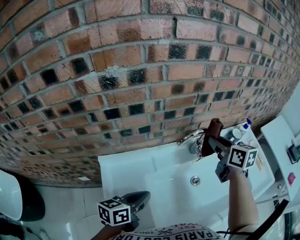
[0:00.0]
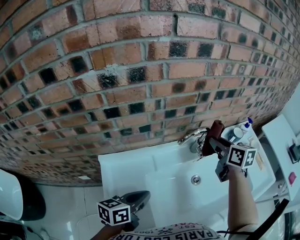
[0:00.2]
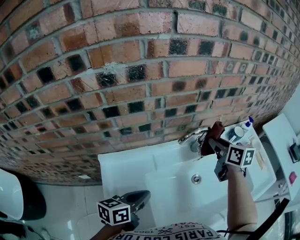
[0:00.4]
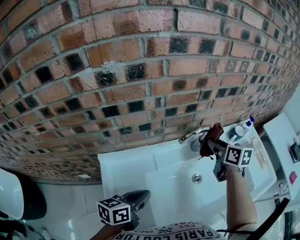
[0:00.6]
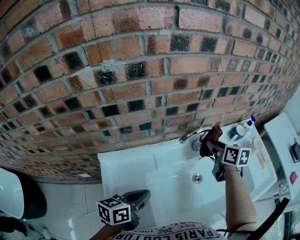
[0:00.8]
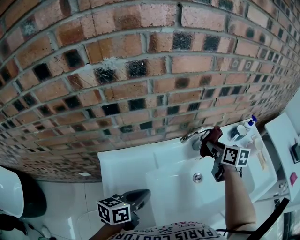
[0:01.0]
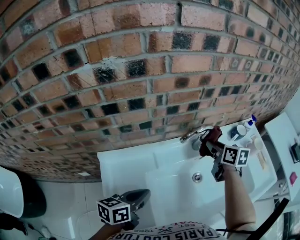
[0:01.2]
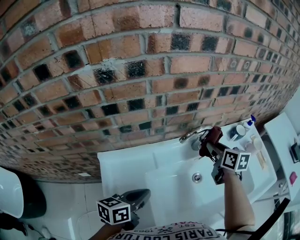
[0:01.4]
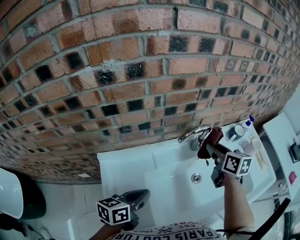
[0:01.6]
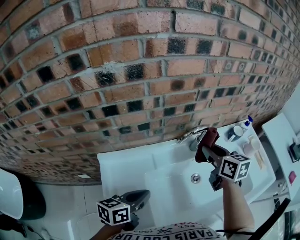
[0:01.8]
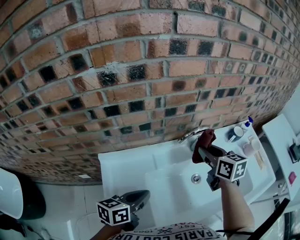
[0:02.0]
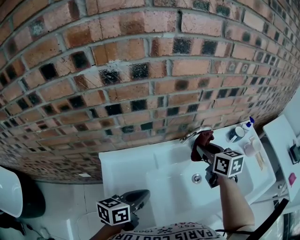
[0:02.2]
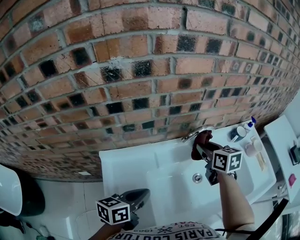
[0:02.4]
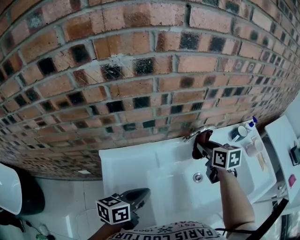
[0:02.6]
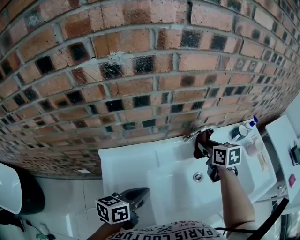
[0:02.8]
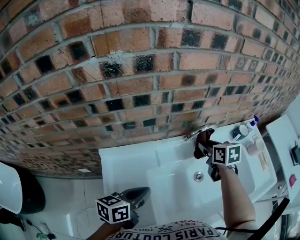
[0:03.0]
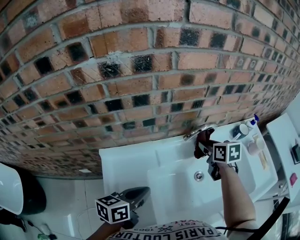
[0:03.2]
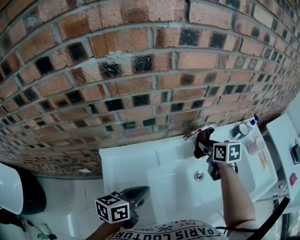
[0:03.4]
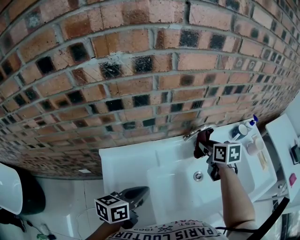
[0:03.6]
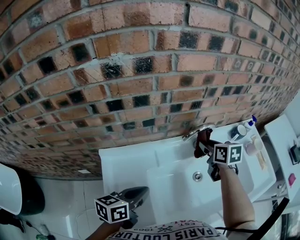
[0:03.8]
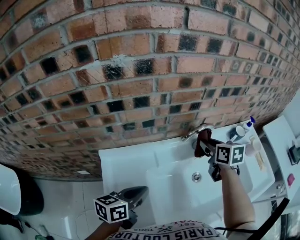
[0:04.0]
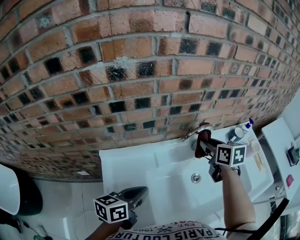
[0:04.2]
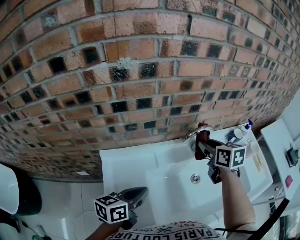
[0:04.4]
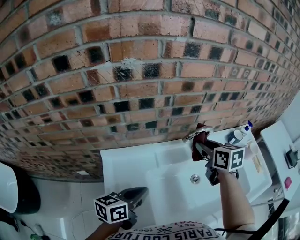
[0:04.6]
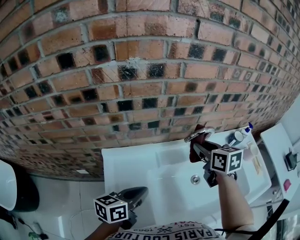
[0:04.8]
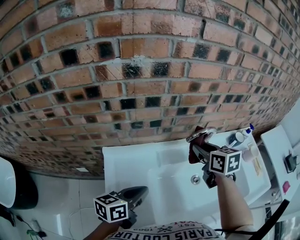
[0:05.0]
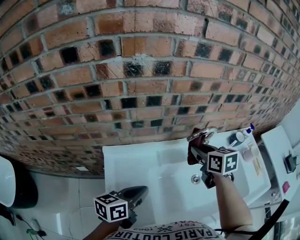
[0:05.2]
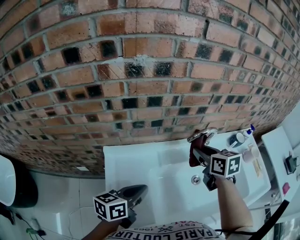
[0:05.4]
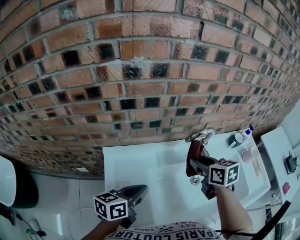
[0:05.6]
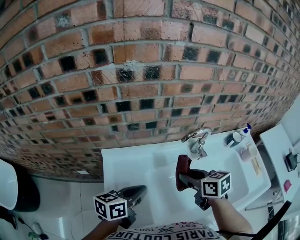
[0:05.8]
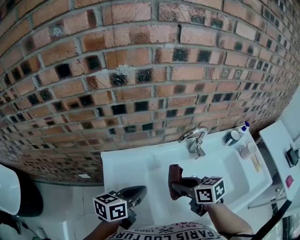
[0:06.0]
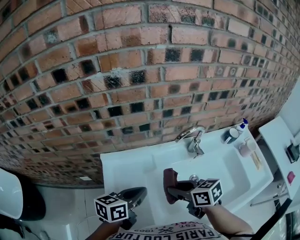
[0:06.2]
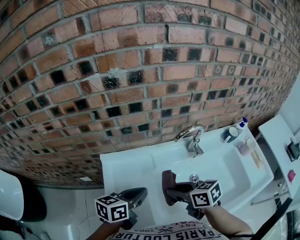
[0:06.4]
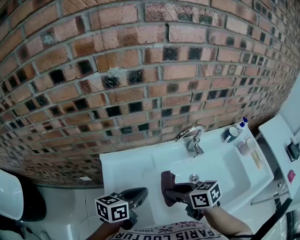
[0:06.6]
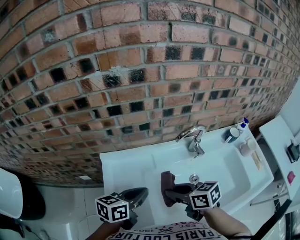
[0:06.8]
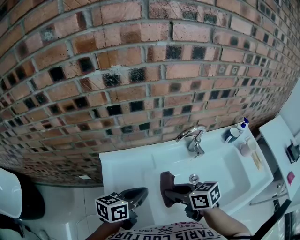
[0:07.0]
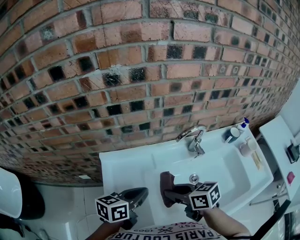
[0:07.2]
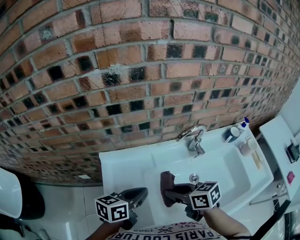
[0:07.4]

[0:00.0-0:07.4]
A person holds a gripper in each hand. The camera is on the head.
0:00.0 to 0:01.4: The right gripper moves downward, approximately 10 cm.
0:01.4 to 0:03.0: The right gripper ends up some 5 cm from where it was.
0:03.0 to 0:04.4: The right gripper travels upward by some 5 cm.
0:04.4 to 0:06.0: The right gripper moves backward and to the left, roughly 20 cm, and turns by some 30 degrees.
0:06.0 to 0:07.4: There are only small adjustments of the grippers.

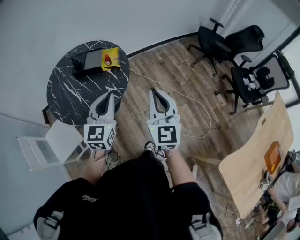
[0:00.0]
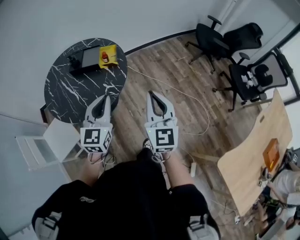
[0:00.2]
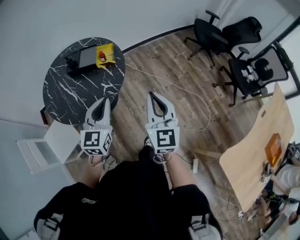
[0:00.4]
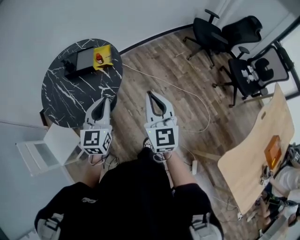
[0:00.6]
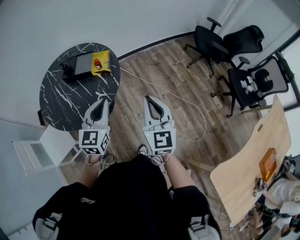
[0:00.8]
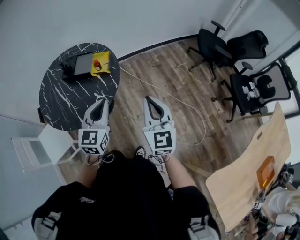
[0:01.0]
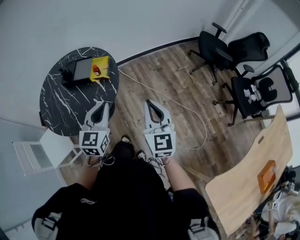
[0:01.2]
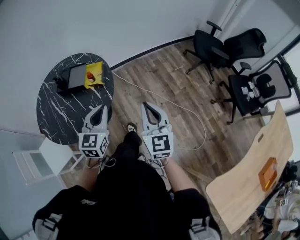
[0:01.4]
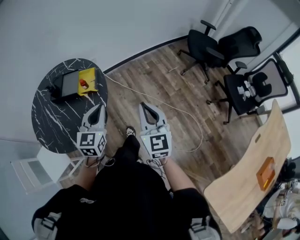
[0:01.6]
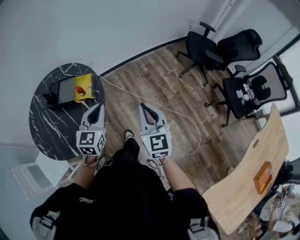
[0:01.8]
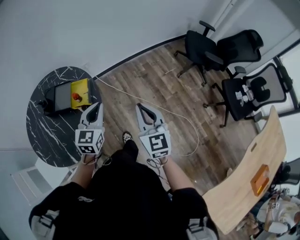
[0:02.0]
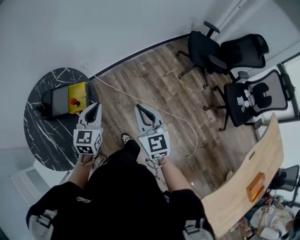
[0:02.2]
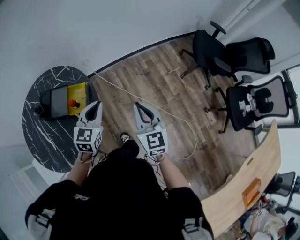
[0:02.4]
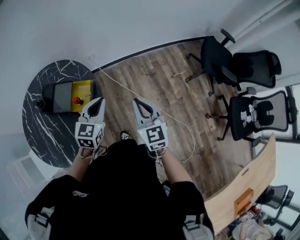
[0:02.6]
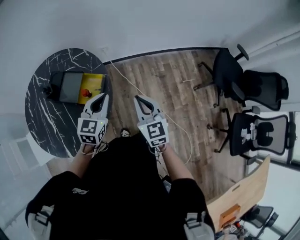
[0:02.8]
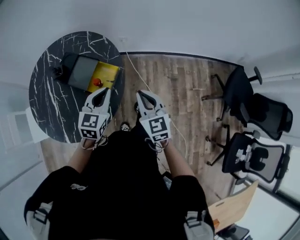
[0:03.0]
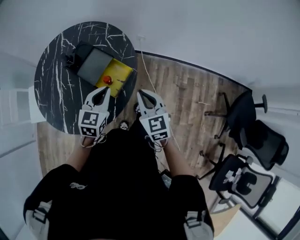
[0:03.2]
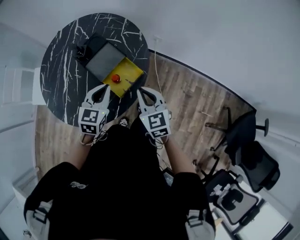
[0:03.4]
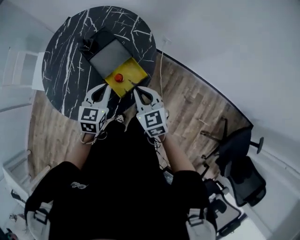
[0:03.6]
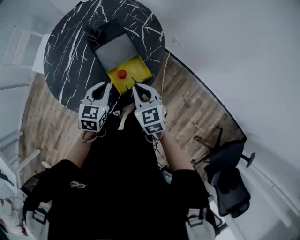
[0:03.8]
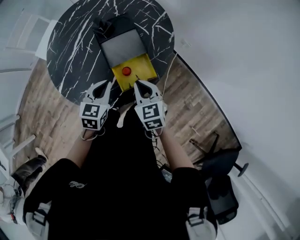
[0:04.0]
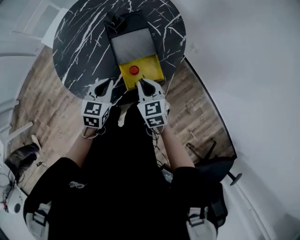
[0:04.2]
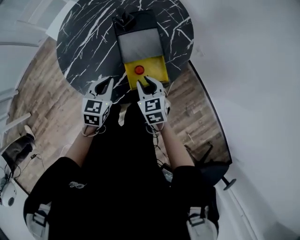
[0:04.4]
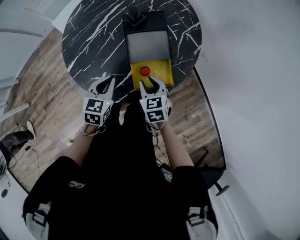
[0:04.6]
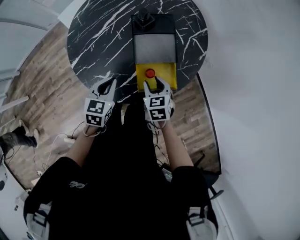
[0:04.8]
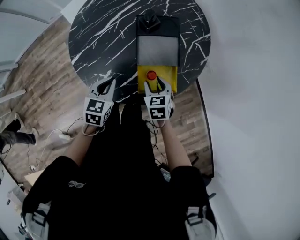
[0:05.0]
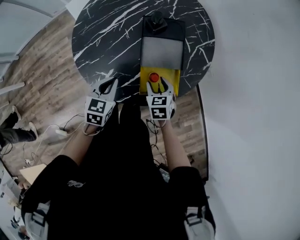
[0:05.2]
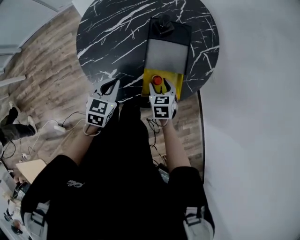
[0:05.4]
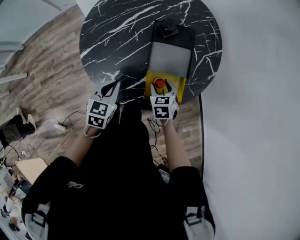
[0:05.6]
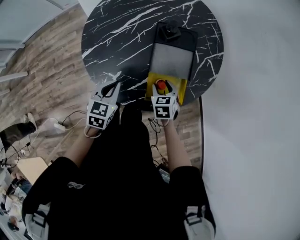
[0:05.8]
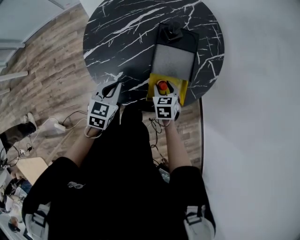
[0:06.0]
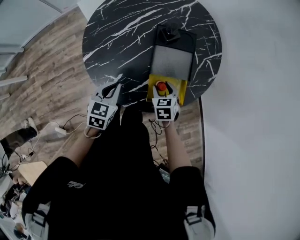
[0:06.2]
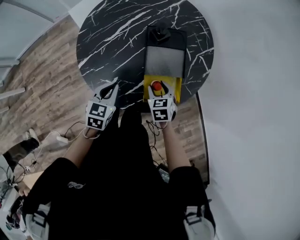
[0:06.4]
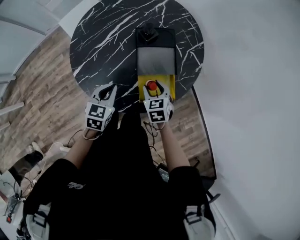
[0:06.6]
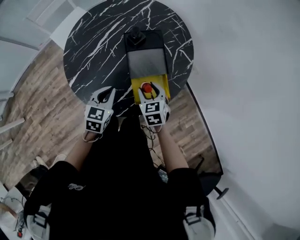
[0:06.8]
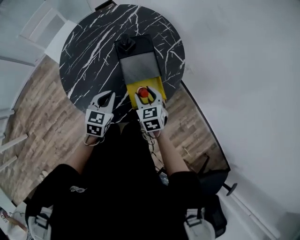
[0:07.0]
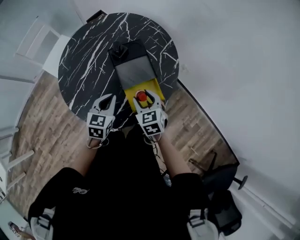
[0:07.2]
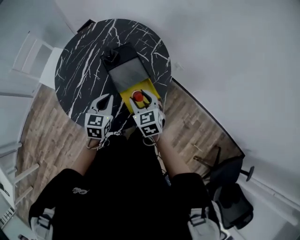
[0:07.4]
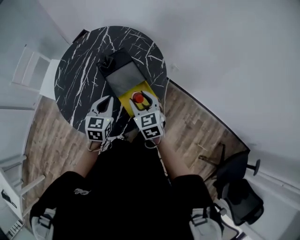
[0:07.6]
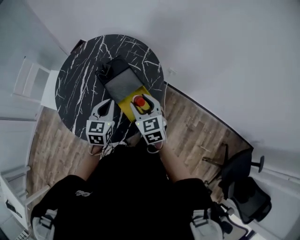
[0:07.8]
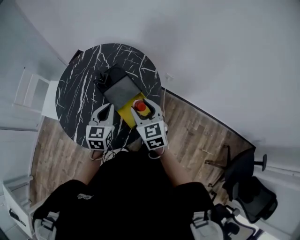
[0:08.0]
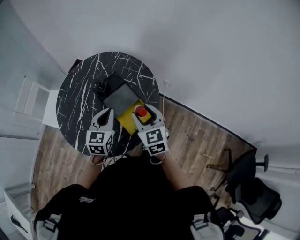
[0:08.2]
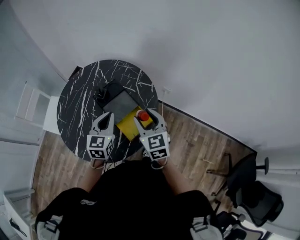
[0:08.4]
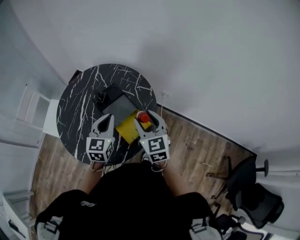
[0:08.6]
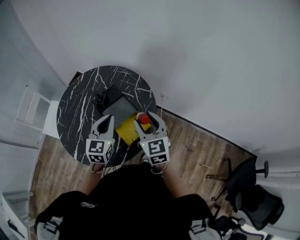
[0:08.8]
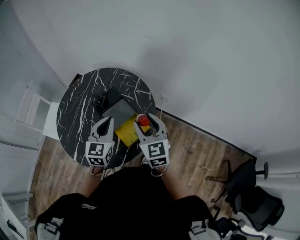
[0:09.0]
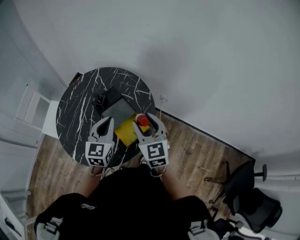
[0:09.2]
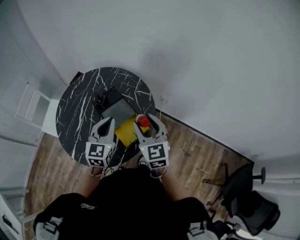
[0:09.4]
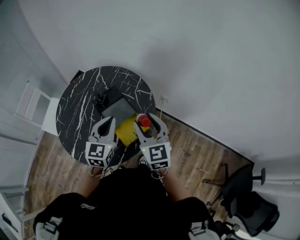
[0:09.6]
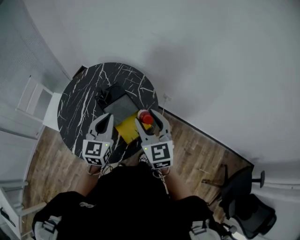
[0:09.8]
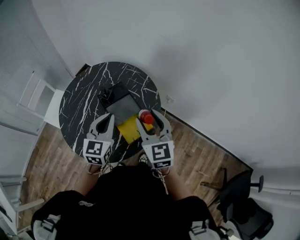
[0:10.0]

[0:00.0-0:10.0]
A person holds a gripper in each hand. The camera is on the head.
0:00.0 to 0:01.4: Both grippers move forward, to the right and downward, approximately 15 cm.
0:01.4 to 0:02.8: The two grippers go about 35 cm forward. The right gripper turns by approximately 30 degrees.
0:02.8 to 0:04.2: The right gripper moves roughly 30 cm, and turns by some 70 degrees. The left gripper moves roughly 25 cm, and swivels some 60 degrees.
0:04.2 to 0:05.8: The left gripper shifts some 10 cm to the left. Meanwhile the right gripper heads downward and forward, covering roughly 10 cm, turns by about 20 degrees, and opens its fingers.
0:05.8 to 0:07.2: The right gripper goes roughly 15 cm upward, and changes its angle by about 20 degrees. Meanwhile the left gripper goes some 10 cm to the right and upward, and swivels about 20 degrees.
0:07.2 to 0:08.6: The grippers both shift upward and to the right by approximately 15 cm. The left gripper rotates some 20 degrees; the right gripper swivels approximately 30 degrees.
0:08.6 to 0:10.0: The right gripper travels upward by some 5 cm.

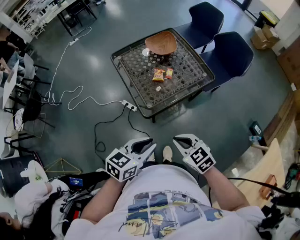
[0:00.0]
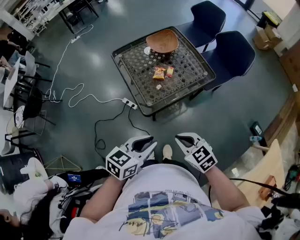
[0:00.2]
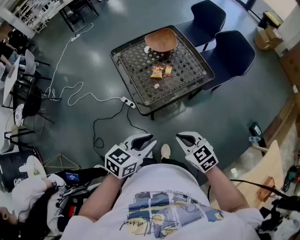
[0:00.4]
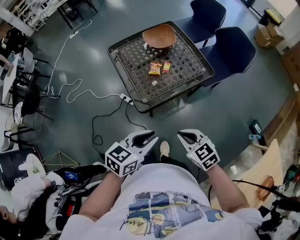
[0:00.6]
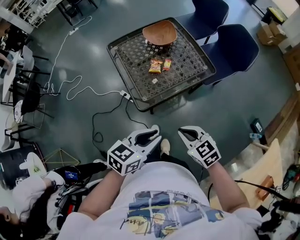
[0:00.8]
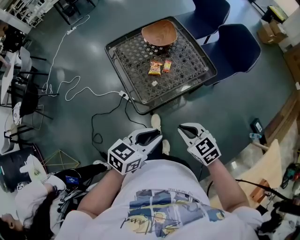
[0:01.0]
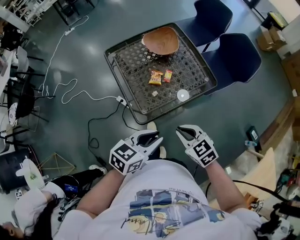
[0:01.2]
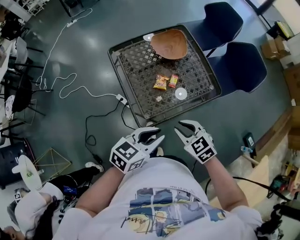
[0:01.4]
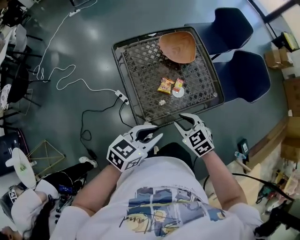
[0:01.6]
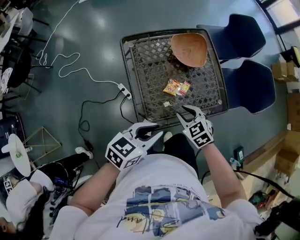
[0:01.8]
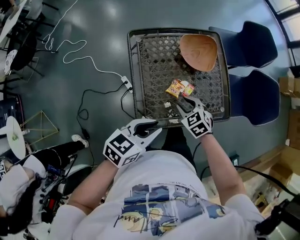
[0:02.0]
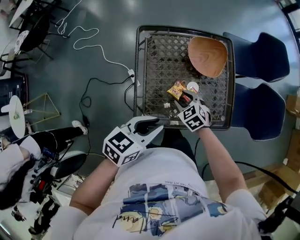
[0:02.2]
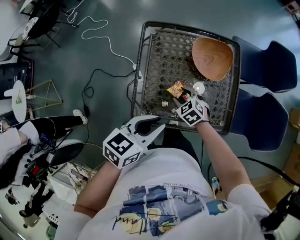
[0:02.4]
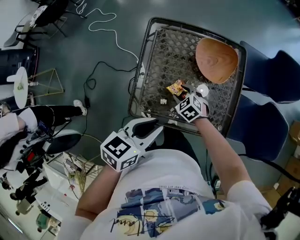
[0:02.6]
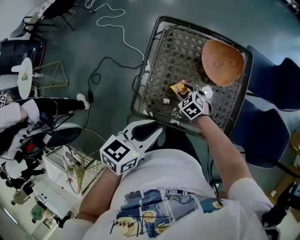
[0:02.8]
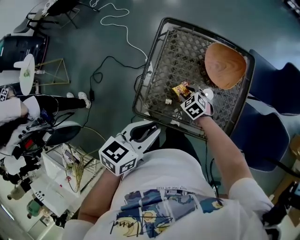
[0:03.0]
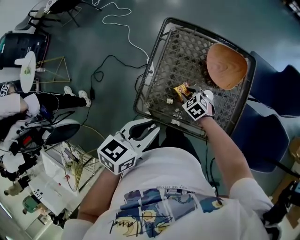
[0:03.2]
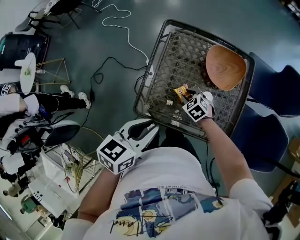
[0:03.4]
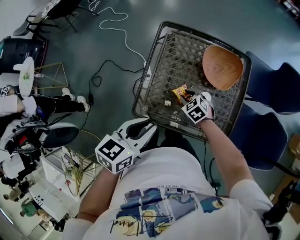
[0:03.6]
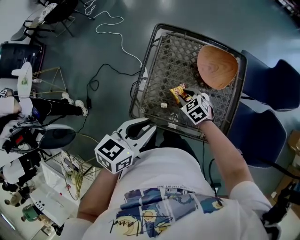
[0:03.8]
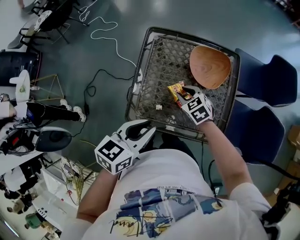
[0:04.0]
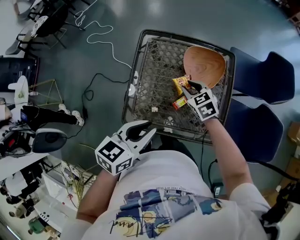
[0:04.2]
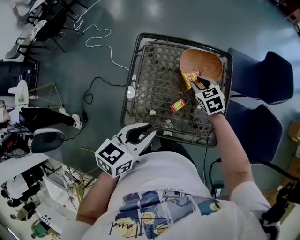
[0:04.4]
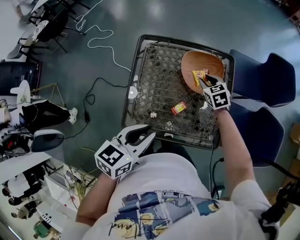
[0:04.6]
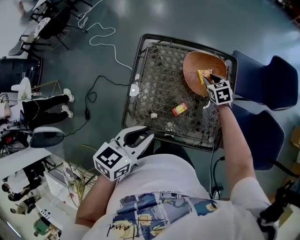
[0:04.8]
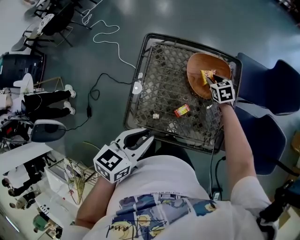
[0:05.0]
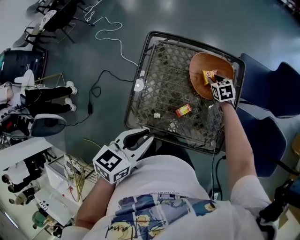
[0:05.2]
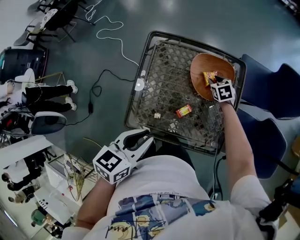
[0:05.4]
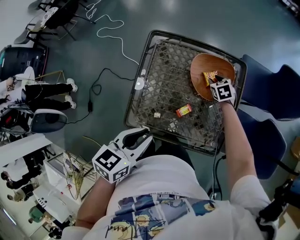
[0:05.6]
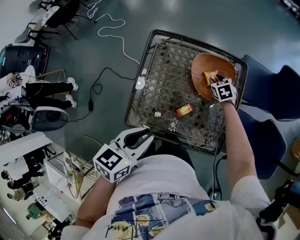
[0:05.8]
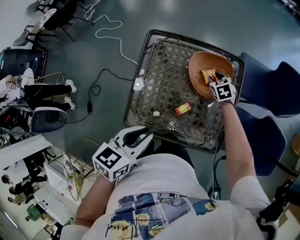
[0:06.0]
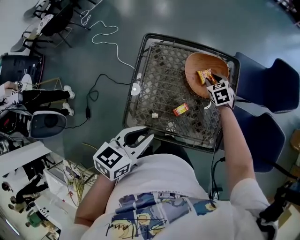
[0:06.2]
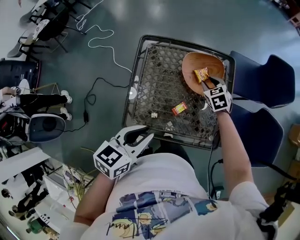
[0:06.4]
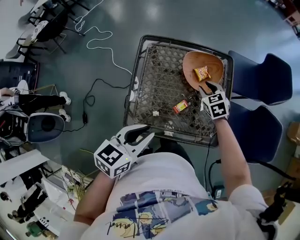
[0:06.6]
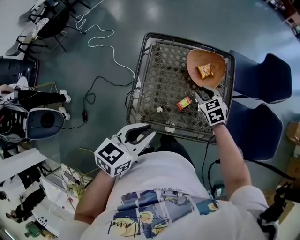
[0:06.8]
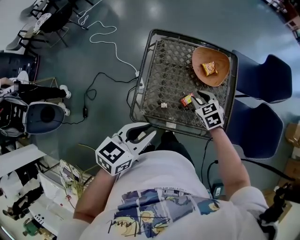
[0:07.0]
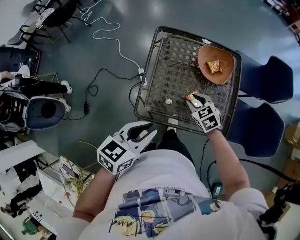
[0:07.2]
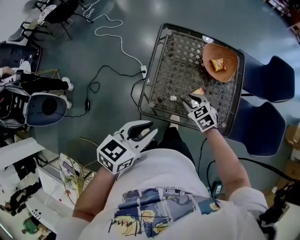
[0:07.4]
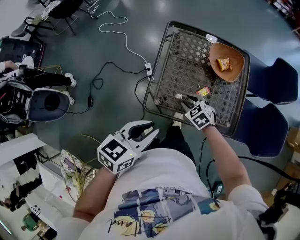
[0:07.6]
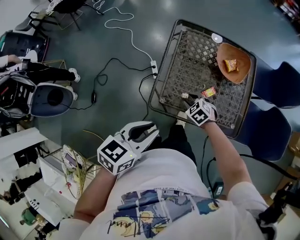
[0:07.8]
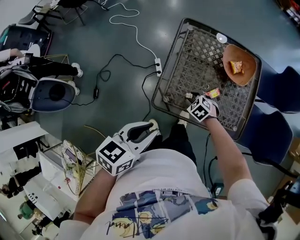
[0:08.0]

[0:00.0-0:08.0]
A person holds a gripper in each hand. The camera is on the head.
0:00.0 to 0:01.6: Both grippers travel together forward, about 20 cm. The right gripper opens up.
0:01.6 to 0:03.2: The right gripper goes roughly 20 cm downward, and rotates roughly 40 degrees. Meanwhile the left gripper changes place by some 5 cm, and changes its angle by roughly 50 degrees.
0:03.2 to 0:04.8: The left gripper moves to the right, some 5 cm; the right gripper travels to the right and forward by about 25 cm, and swivels some 30 degrees.
0:04.8 to 0:06.4: The right gripper goes downward and returns, about 5 cm each way.
0:06.4 to 0:08.0: The left gripper is displaced to the left and backward by approximately 20 cm, while the right gripper goes roughly 35 cm to the left, backward and downward, and changes its angle by roughly 30 degrees.
